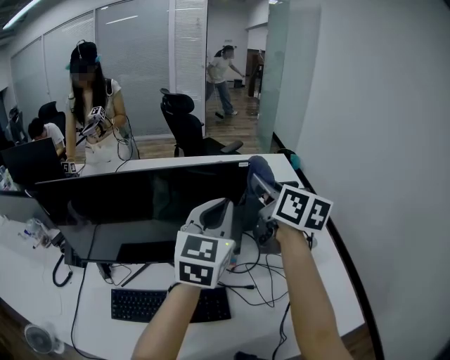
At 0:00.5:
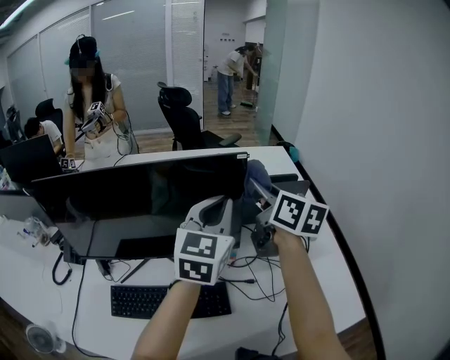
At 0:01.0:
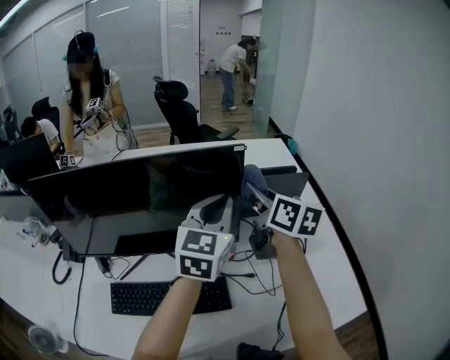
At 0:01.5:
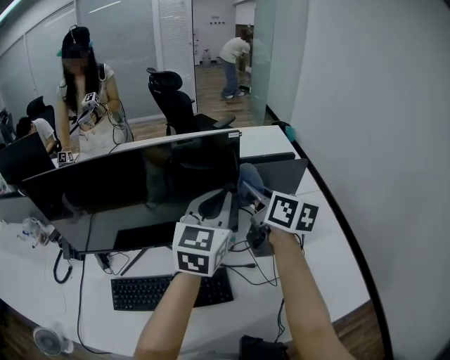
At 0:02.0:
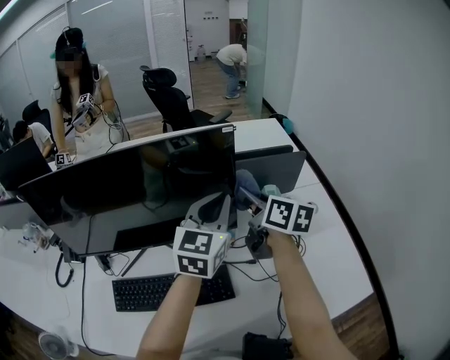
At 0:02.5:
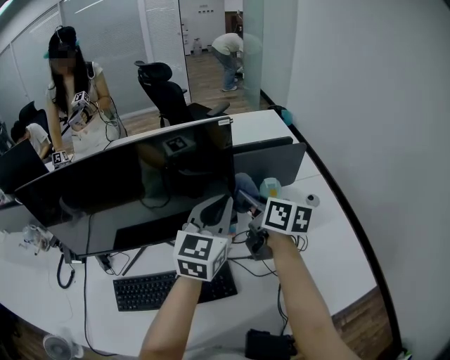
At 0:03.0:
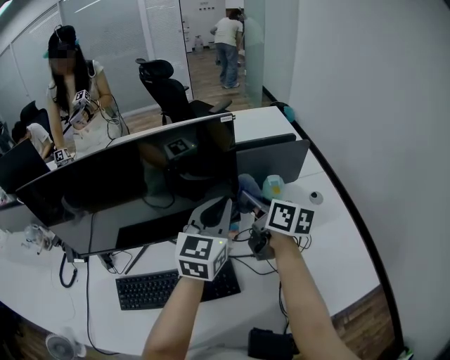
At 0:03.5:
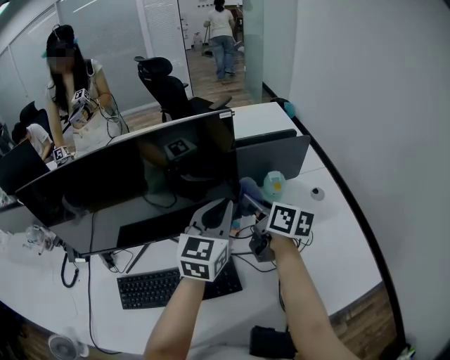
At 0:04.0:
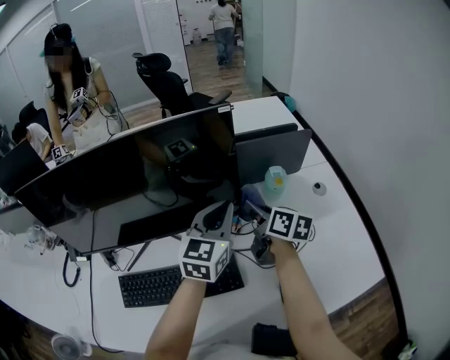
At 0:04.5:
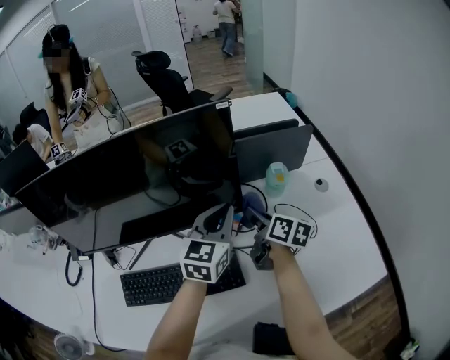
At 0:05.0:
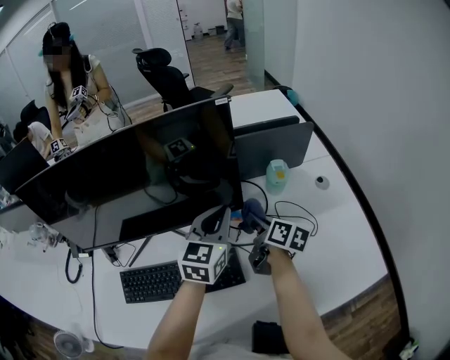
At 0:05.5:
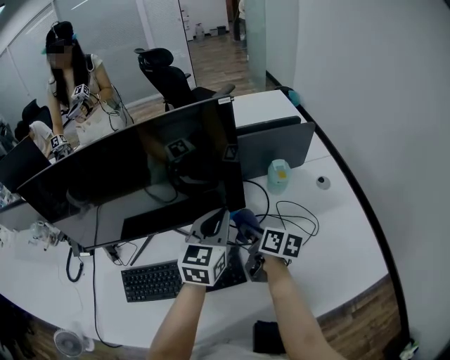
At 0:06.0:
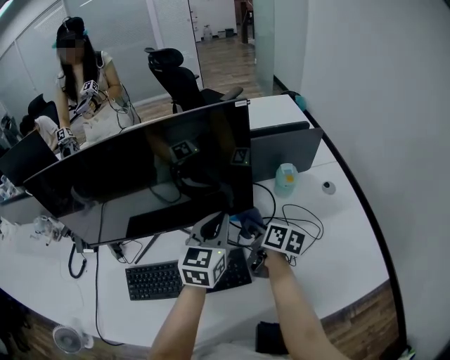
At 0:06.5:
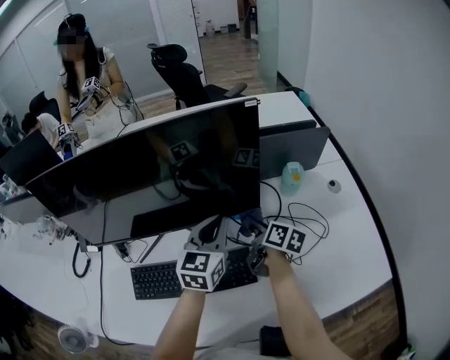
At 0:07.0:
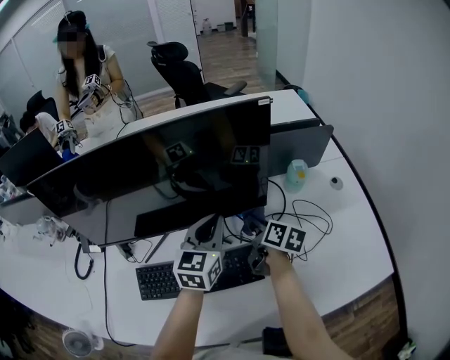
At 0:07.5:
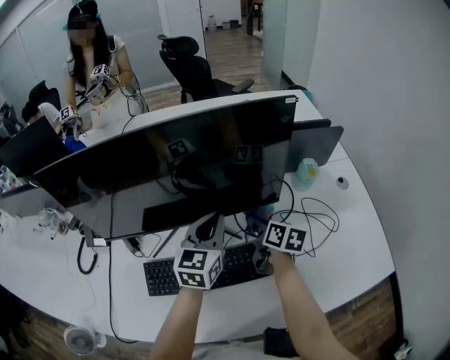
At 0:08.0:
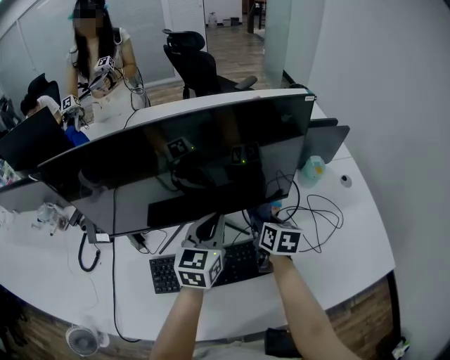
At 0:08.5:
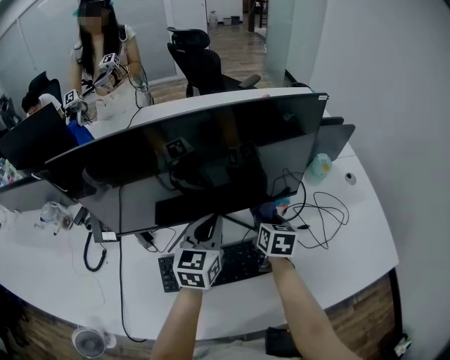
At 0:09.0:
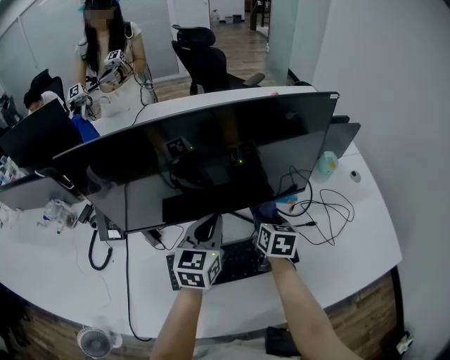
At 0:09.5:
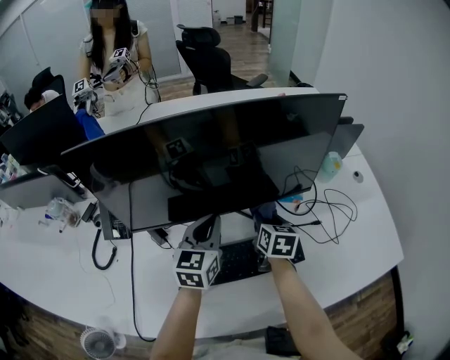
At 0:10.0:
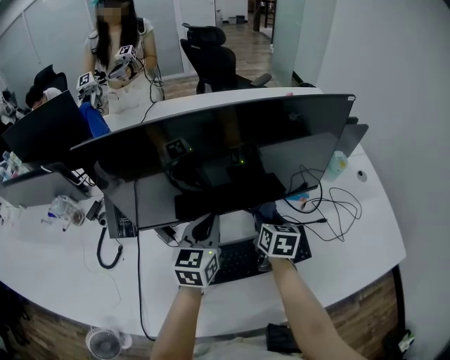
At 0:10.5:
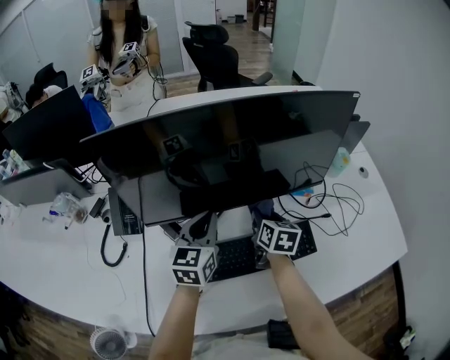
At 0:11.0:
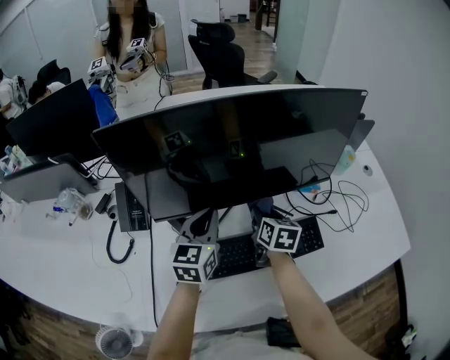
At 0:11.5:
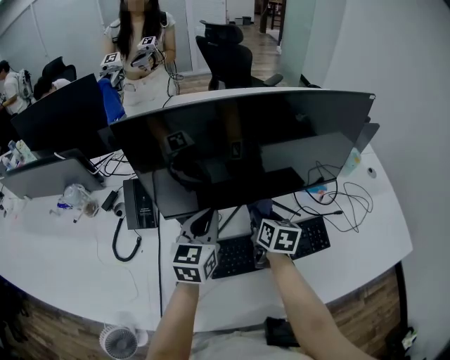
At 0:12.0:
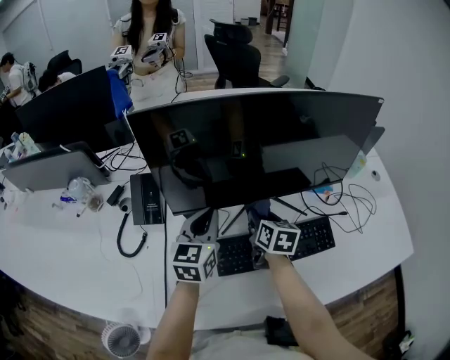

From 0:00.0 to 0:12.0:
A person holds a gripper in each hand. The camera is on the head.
From 0:00.0 to 0:02.0: The right gripper heads downward, covering roughly 15 cm; the left gripper goes about 10 cm downward.
From 0:02.0 to 0:04.0: The right gripper is displaced downward by approximately 10 cm; the left gripper goes about 10 cm downward.
From 0:04.0 to 0:06.0: The left gripper shifts by about 5 cm; the right gripper is displaced downward by approximately 10 cm.
From 0:06.0 to 0:08.0: The left gripper is displaced to the left by roughly 15 cm. The right gripper heads to the left, covering approximately 10 cm, and turns by some 30 degrees.
From 0:08.0 to 0:10.0: The two grippers go approximately 10 cm to the left.
From 0:10.0 to 0:12.0: The grippers both shift to the left by some 10 cm.

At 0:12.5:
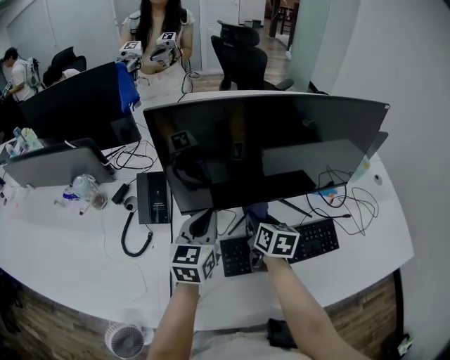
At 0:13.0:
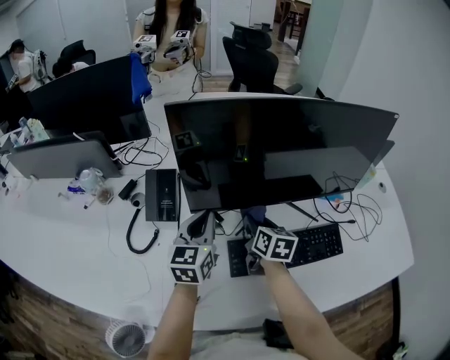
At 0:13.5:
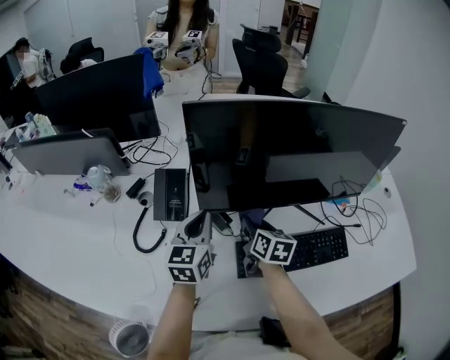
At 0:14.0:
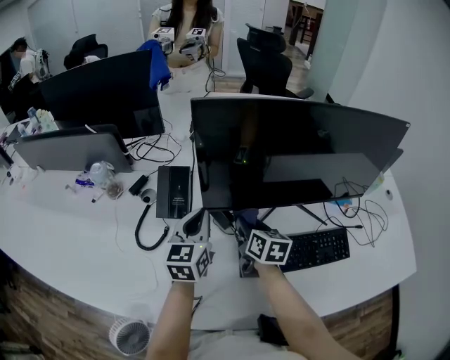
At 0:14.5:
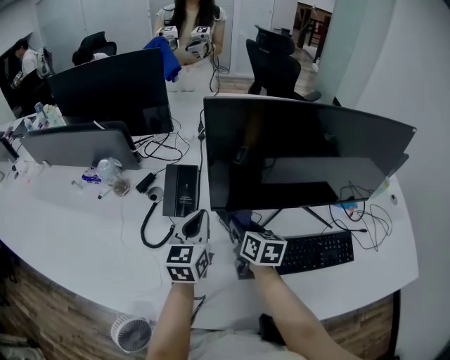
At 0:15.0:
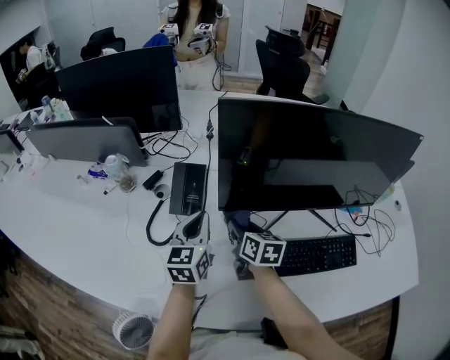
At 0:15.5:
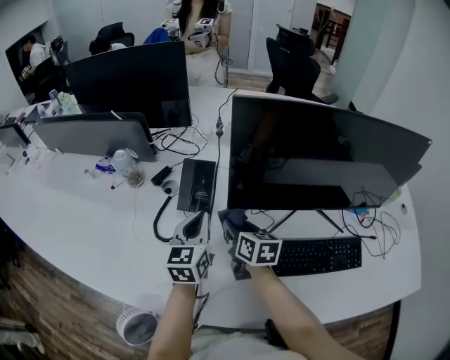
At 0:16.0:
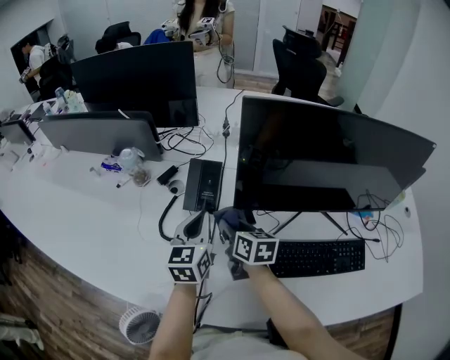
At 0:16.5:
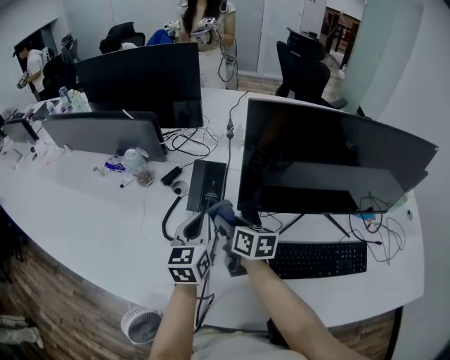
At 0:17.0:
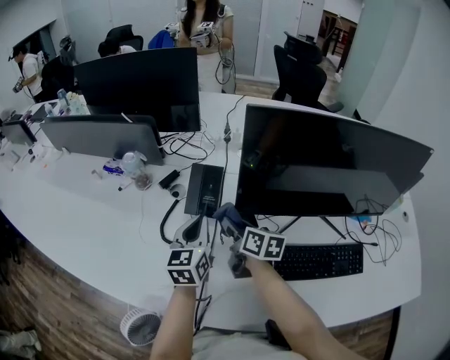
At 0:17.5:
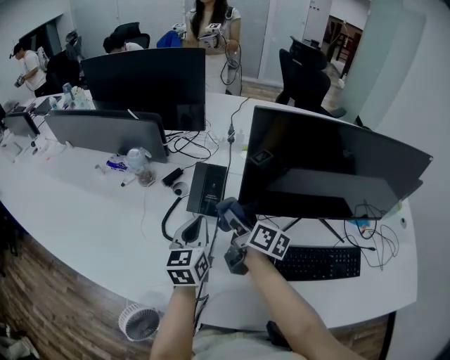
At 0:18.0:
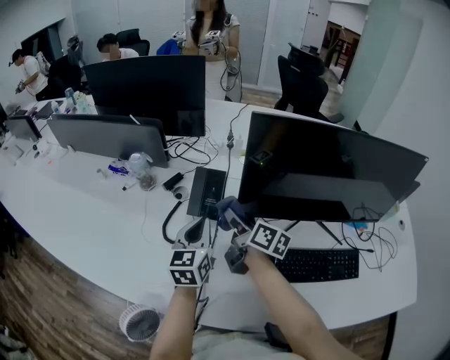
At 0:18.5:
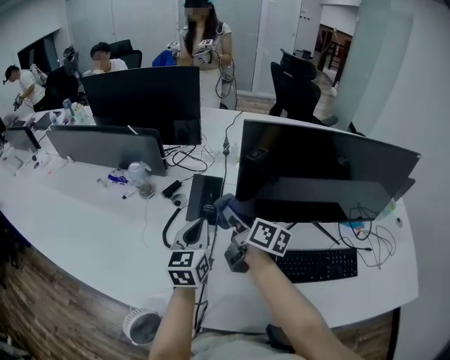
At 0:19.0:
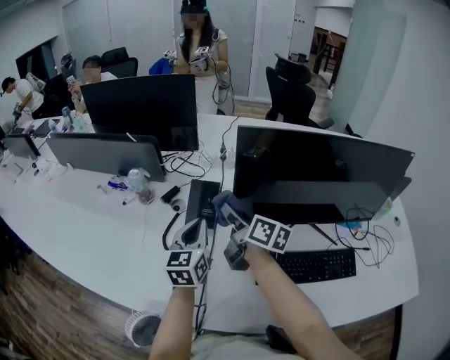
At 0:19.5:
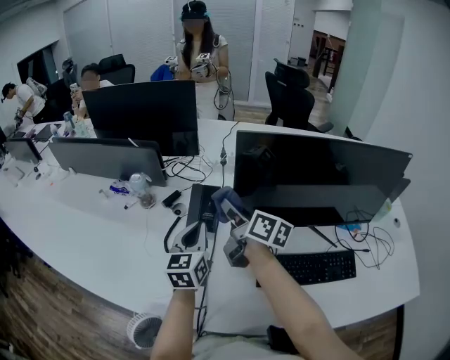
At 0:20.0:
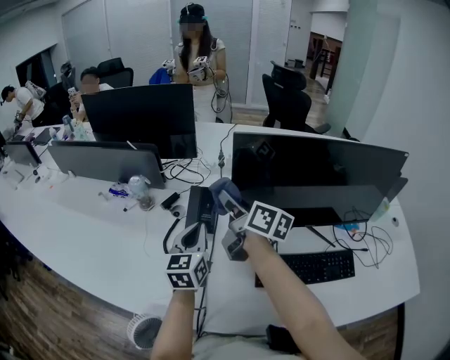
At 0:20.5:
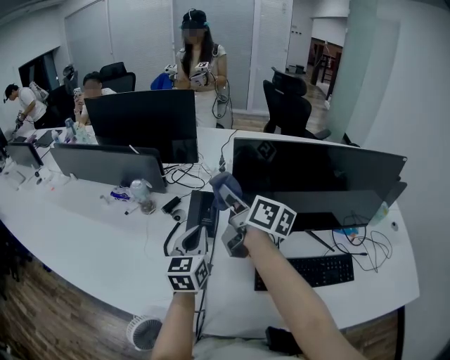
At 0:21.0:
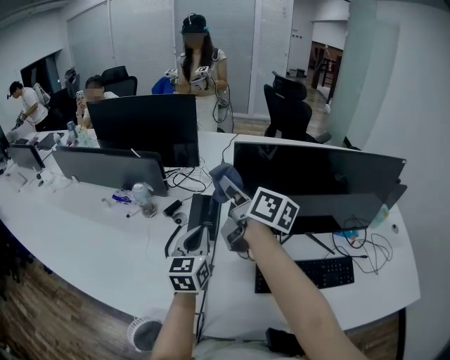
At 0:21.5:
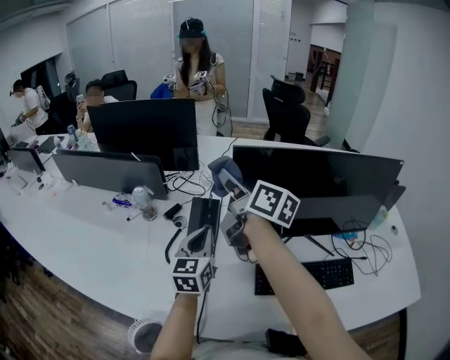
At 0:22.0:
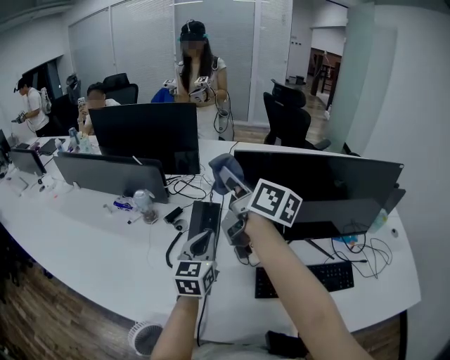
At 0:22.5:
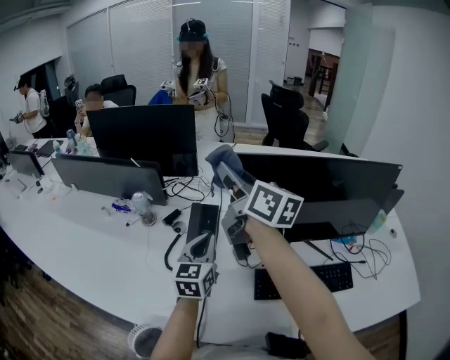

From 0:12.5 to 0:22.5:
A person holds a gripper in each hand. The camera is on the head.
From 0:12.5 to 0:14.5: The two grippers go about 15 cm to the left.
From 0:14.5 to 0:16.5: The left gripper travels to the left by about 5 cm, while the right gripper goes some 15 cm to the left.
From 0:16.5 to 0:18.5: The right gripper heads upward, covering approximately 10 cm, and changes its angle by roughly 20 degrees.
From 0:18.5 to 0:20.5: The right gripper heads upward, covering roughly 15 cm.
From 0:20.5 to 0:22.5: The right gripper travels upward by about 15 cm.

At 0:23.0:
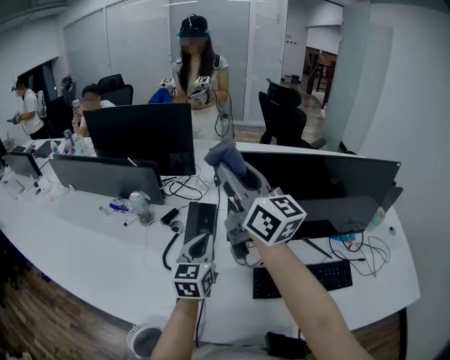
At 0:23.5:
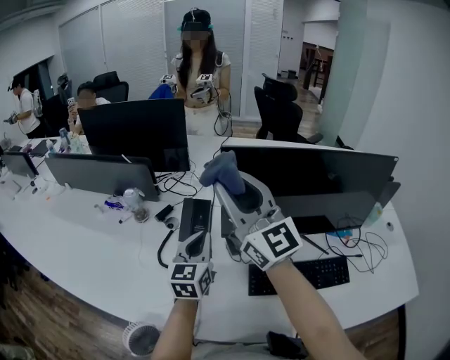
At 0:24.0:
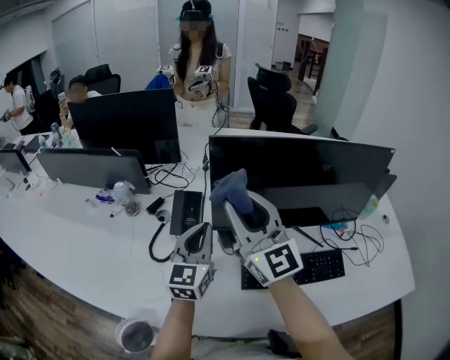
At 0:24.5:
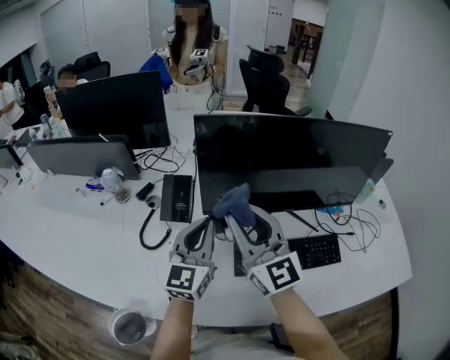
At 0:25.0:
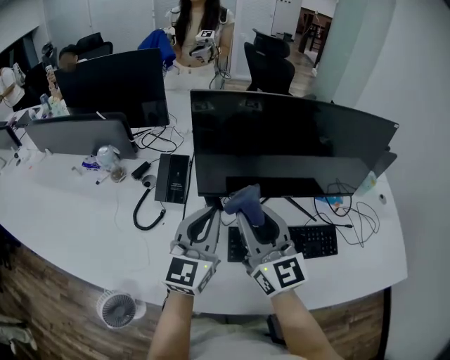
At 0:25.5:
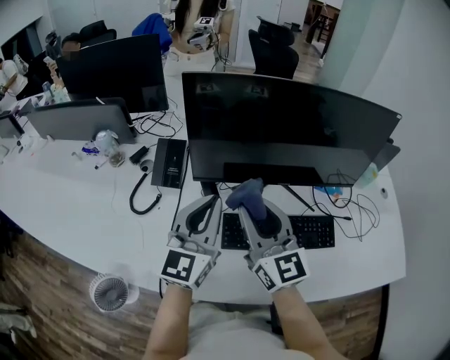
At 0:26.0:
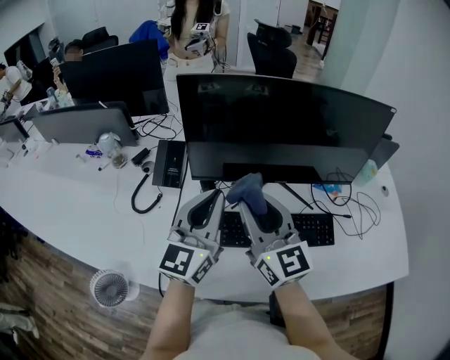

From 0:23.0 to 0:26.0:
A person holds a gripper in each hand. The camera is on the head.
From 0:23.0 to 0:24.5: The left gripper moves to the right and backward, approximately 10 cm. Meanwhile the right gripper heads downward, backward and to the right, covering about 20 cm, and swivels some 30 degrees.
From 0:24.5 to 0:26.0: Both grippers move to the right, approximately 5 cm.

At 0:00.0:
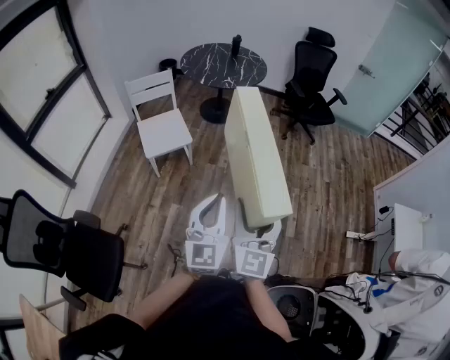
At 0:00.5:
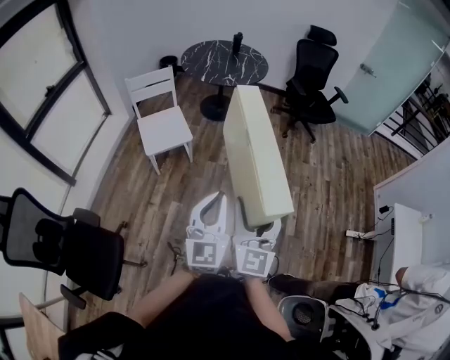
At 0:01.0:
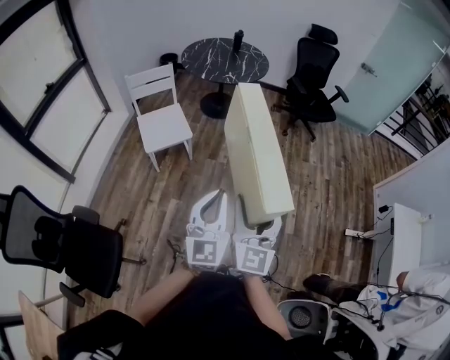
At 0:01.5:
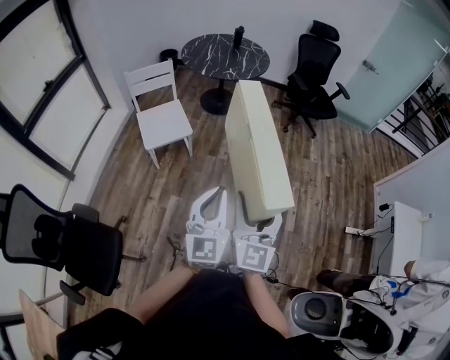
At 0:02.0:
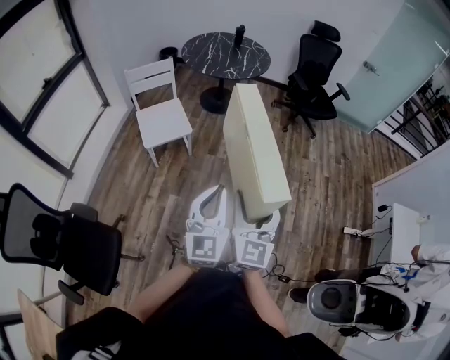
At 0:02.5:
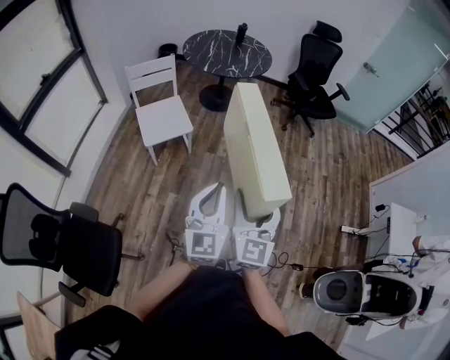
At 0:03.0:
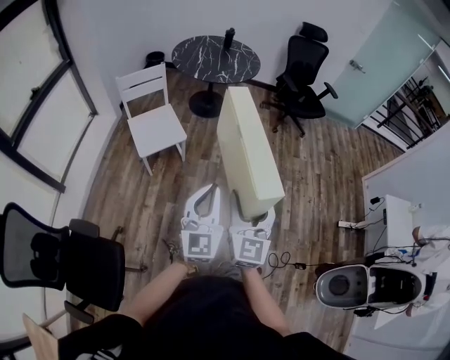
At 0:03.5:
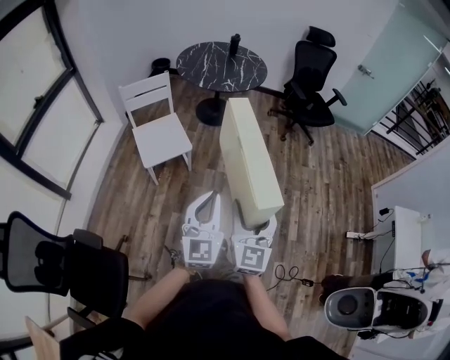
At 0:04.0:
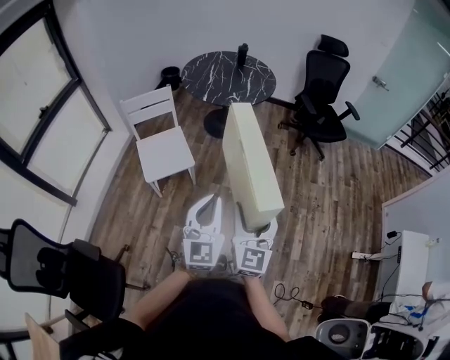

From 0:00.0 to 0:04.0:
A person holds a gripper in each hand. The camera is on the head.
From 0:00.0 to 0:02.0: There are only small adjustments of the grippers.
From 0:02.0 to 0:04.0: The grippers both shift forward by roughly 20 cm.
